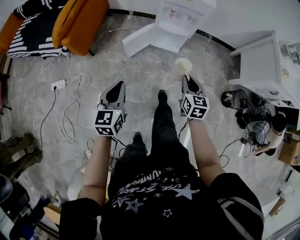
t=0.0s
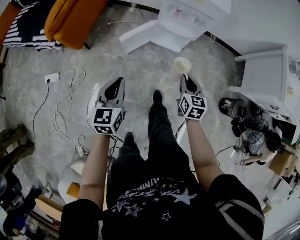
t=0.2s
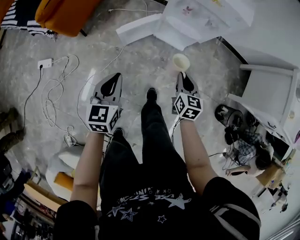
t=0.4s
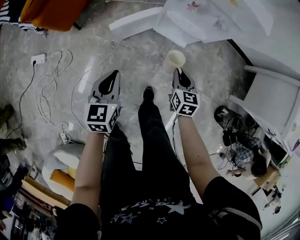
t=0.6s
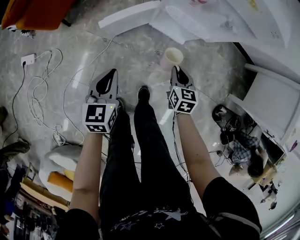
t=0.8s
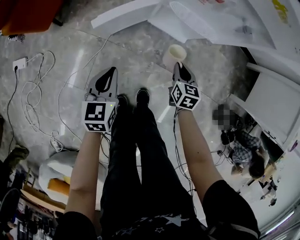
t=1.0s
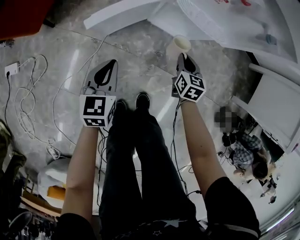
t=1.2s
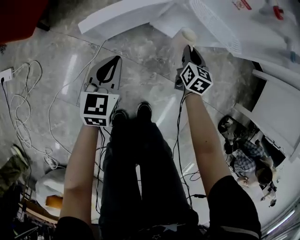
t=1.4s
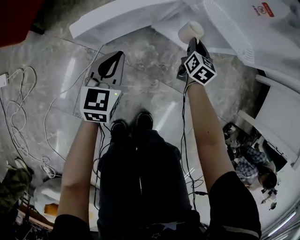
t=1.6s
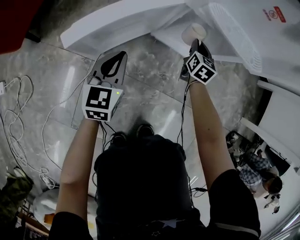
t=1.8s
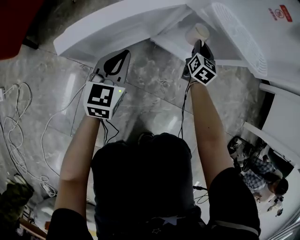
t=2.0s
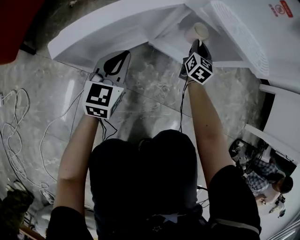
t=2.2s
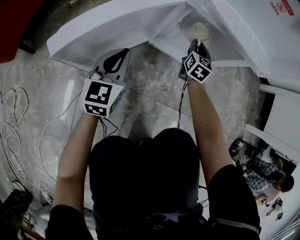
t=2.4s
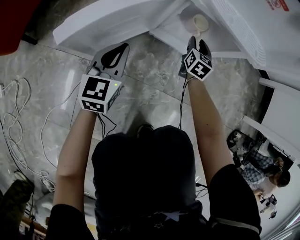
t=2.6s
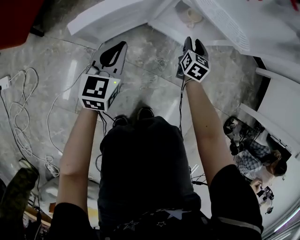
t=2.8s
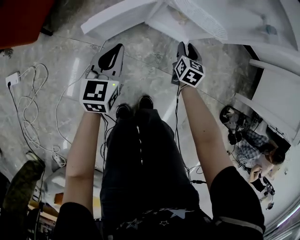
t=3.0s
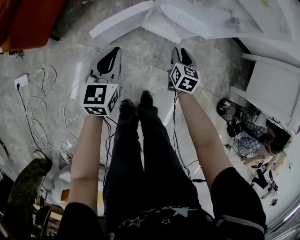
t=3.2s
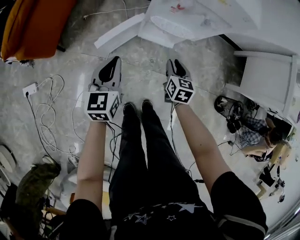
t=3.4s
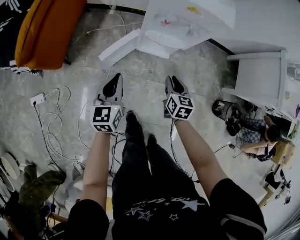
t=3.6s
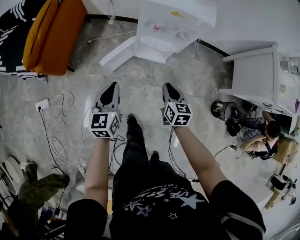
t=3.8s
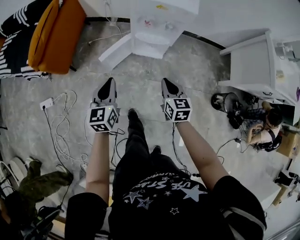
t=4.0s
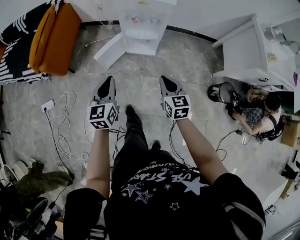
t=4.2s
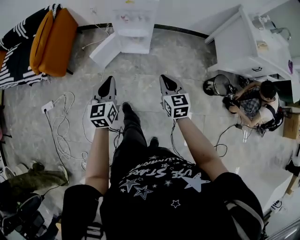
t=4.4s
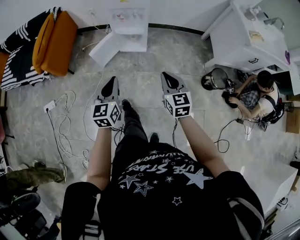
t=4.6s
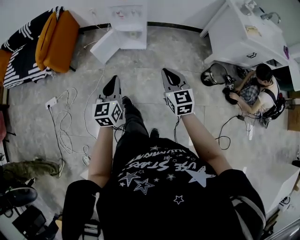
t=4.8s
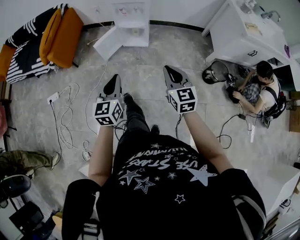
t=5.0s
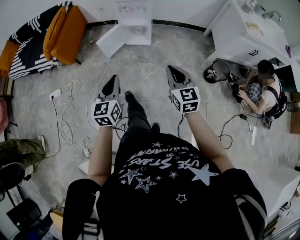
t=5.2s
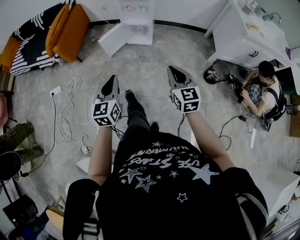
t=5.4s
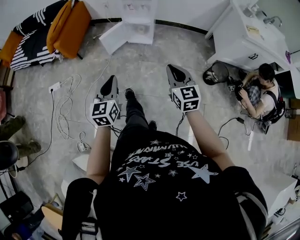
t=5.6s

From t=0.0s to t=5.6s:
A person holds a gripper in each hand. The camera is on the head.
From t=0.0s to t=1.4s: The grippers both shift downward and forward by approximately 60 cm.
From t=1.4s to t=2.8s: The left gripper moves forward, roughly 5 cm, and goes downward and returns, roughly 15 cm each way. Meanwhile the right gripper shifts some 5 cm downward, and goes forward and returns, approximately 15 cm each way.
From t=2.8s to t=4.2s: The two grippers go approximately 60 cm upward and backward. The right gripper closes up.
From t=4.2s to t=5.6s: The left gripper is displaced backward by some 35 cm. Meanwhile the right gripper travels backward and upward by approximately 30 cm.

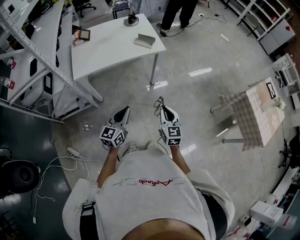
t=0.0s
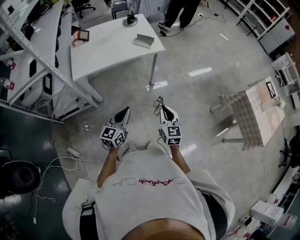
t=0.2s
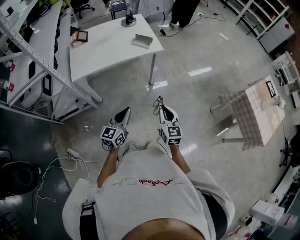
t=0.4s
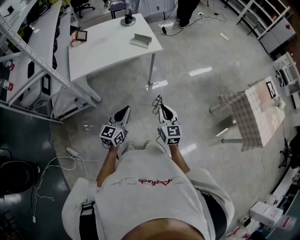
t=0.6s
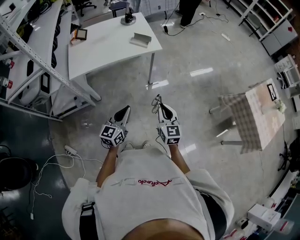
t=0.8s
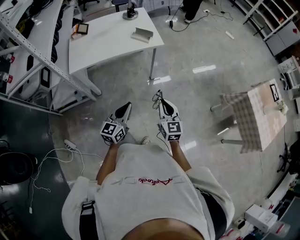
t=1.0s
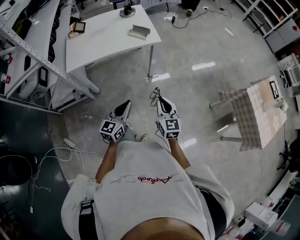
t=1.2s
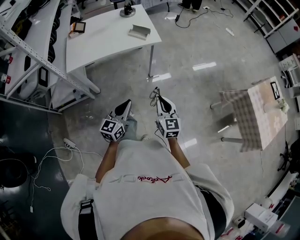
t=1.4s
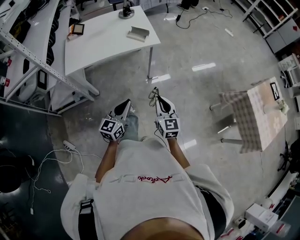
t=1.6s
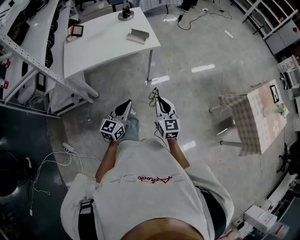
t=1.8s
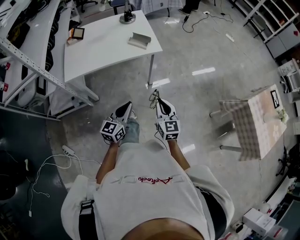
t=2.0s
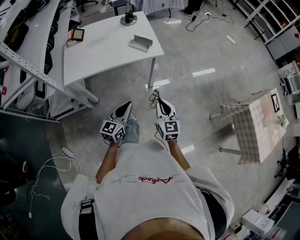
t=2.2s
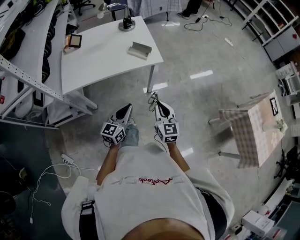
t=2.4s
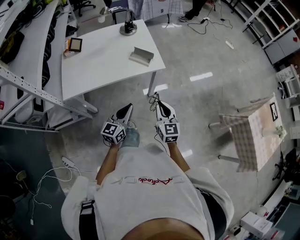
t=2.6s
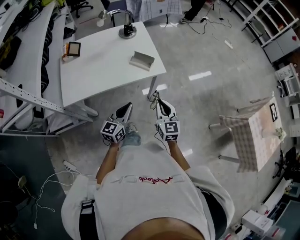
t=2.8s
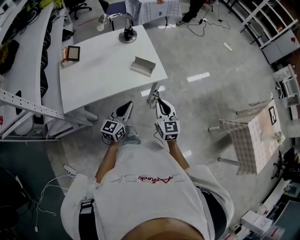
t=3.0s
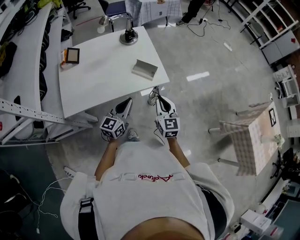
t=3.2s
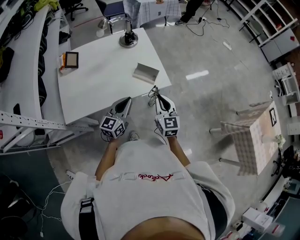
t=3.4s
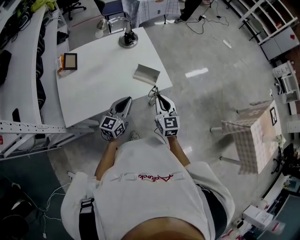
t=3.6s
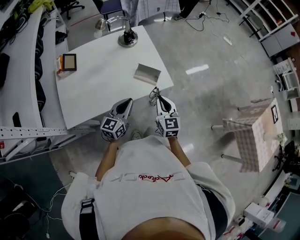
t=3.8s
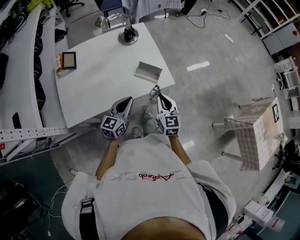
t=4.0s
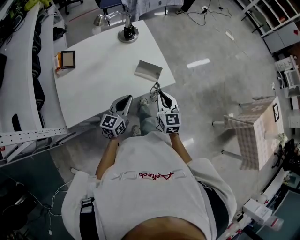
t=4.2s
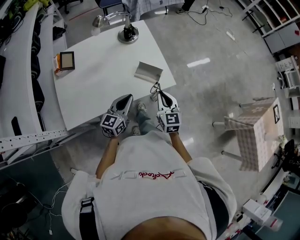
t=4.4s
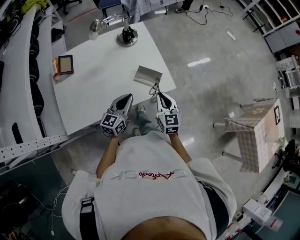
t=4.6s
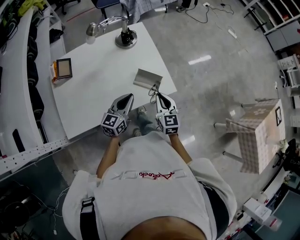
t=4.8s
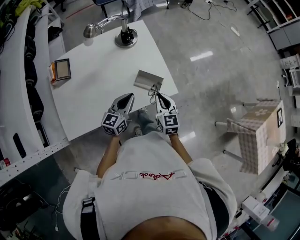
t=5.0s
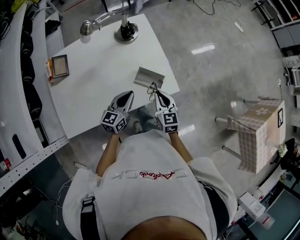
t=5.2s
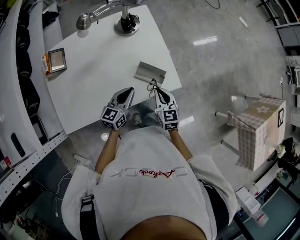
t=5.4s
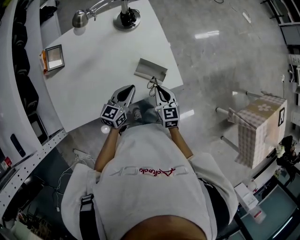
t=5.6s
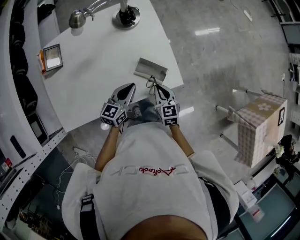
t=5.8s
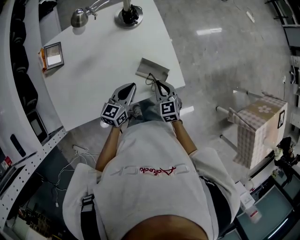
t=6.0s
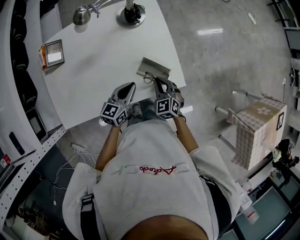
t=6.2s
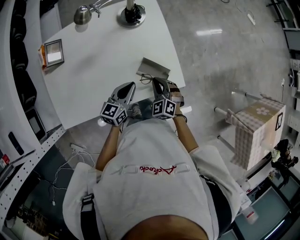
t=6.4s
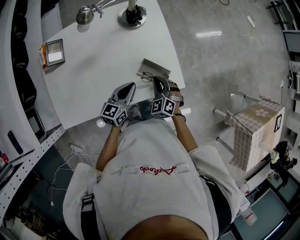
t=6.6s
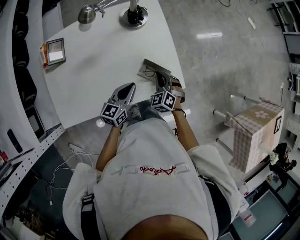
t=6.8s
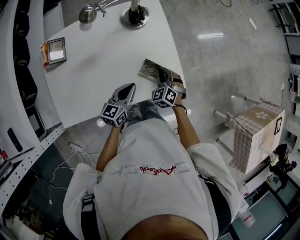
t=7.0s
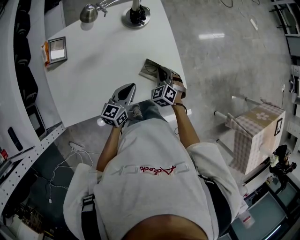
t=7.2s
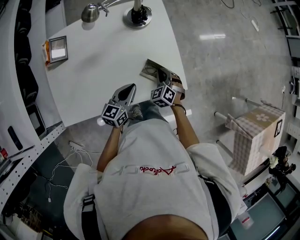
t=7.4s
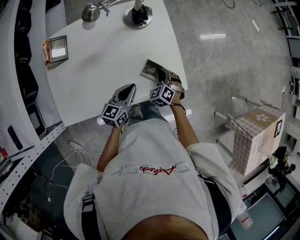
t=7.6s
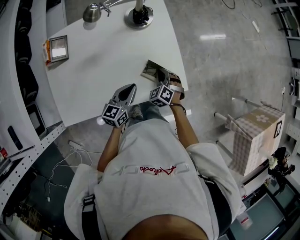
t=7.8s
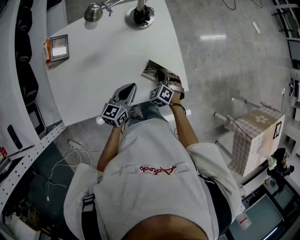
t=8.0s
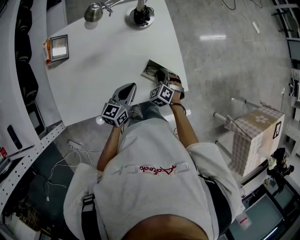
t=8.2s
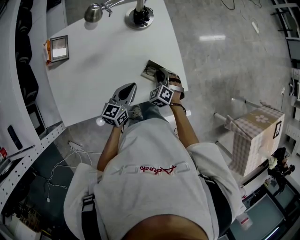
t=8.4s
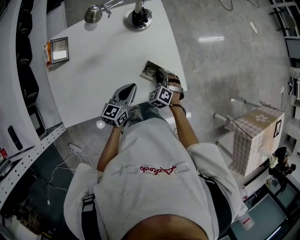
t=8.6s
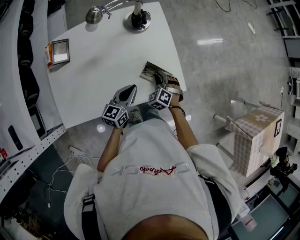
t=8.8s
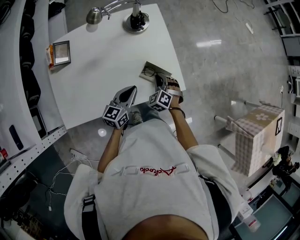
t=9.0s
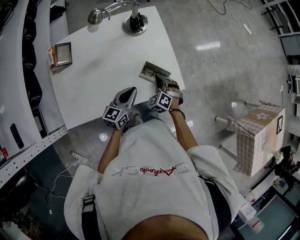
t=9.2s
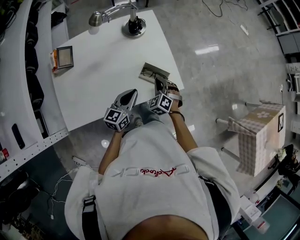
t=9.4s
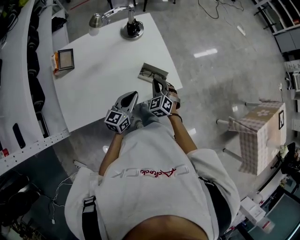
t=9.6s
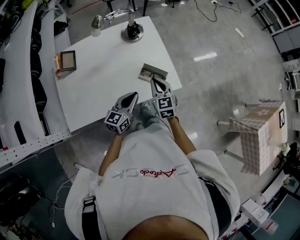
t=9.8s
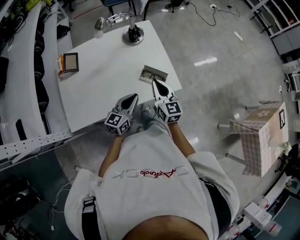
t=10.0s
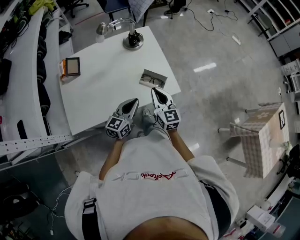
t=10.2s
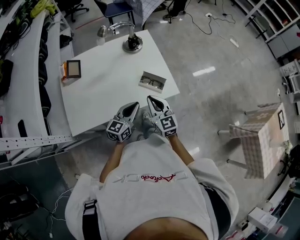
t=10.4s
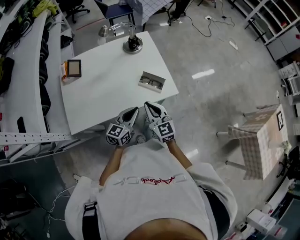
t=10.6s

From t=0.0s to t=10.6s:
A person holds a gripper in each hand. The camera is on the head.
From t=0.0s to t=1.6s: The left gripper moves to the right, roughly 10 cm; the right gripper moves roughly 5 cm.
From t=1.6s to t=3.0s: Both grippers move forward, some 25 cm.
From t=3.0s to t=4.6s: The grippers both shift forward and to the left by approximately 15 cm.
From t=4.6s to t=6.0s: Both grippers travel together downward and forward, about 10 cm. The right gripper swivels about 20 degrees.
From t=6.0s to t=7.6s: The right gripper shifts some 5 cm forward, and rotates approximately 40 degrees.
From t=7.6s to t=9.0s: The grippers make only small movements.
From t=9.0s to t=10.6s: The left gripper moves backward, about 10 cm. Meanwhile the right gripper is displaced upward and backward by roughly 25 cm, and tilts its fingers approximately 40 degrees upward.

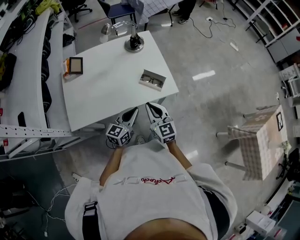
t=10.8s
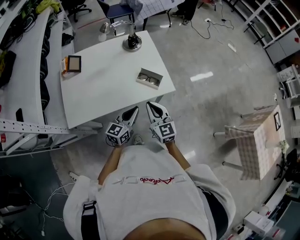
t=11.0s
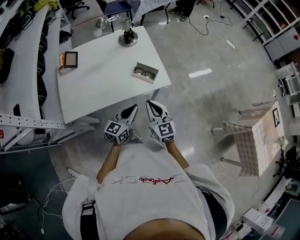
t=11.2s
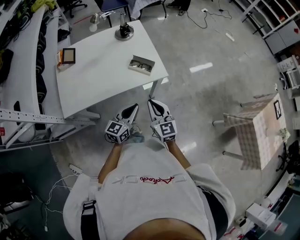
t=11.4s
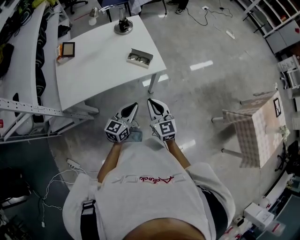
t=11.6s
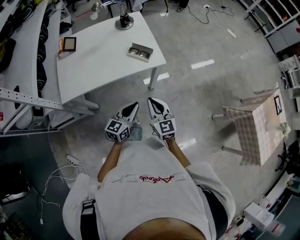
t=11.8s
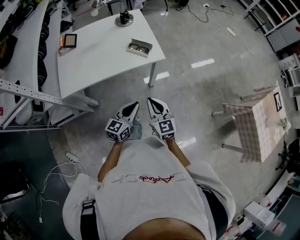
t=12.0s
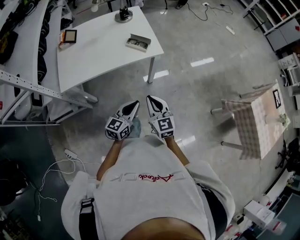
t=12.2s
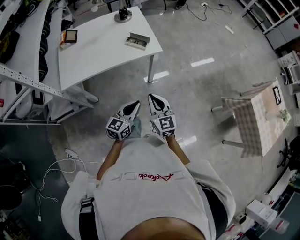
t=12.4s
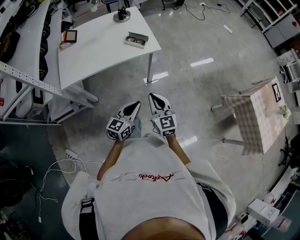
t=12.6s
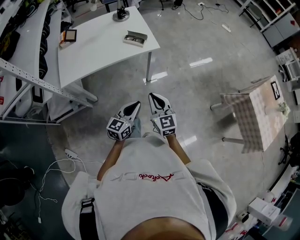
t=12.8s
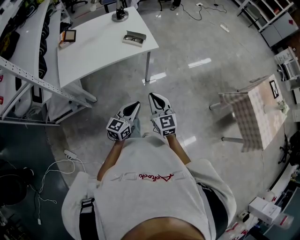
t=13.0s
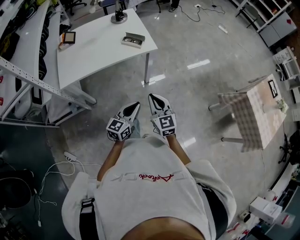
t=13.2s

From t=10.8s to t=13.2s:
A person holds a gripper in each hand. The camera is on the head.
From t=10.8s to t=12.0s: Both grippers travel together backward and to the right, some 20 cm.
From t=12.0s to t=13.2s: Both grippers move backward, about 10 cm.

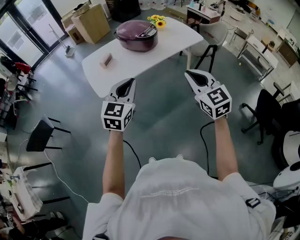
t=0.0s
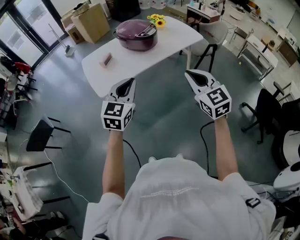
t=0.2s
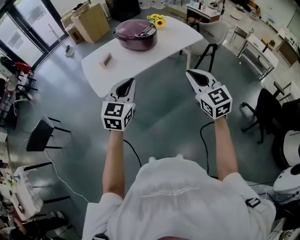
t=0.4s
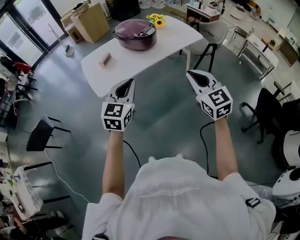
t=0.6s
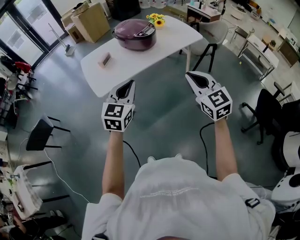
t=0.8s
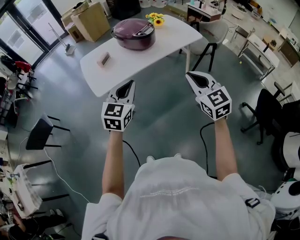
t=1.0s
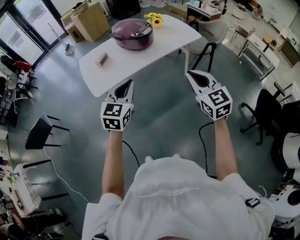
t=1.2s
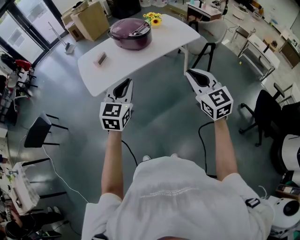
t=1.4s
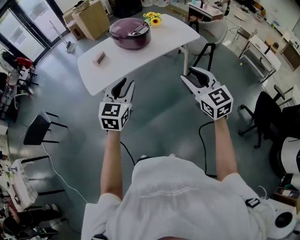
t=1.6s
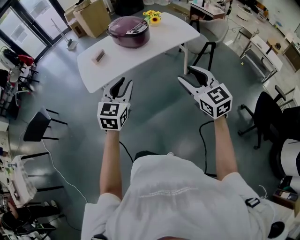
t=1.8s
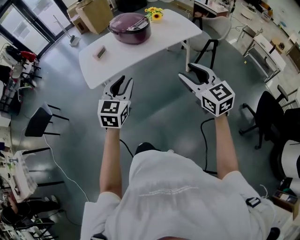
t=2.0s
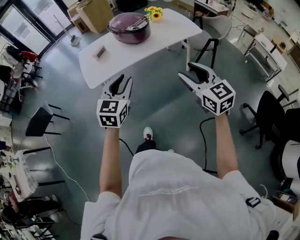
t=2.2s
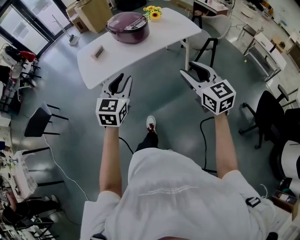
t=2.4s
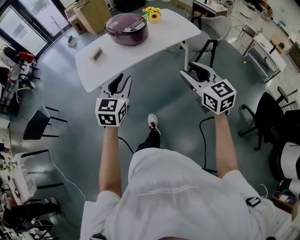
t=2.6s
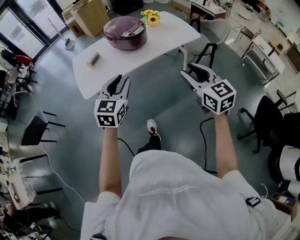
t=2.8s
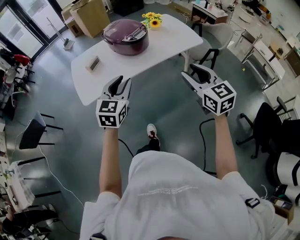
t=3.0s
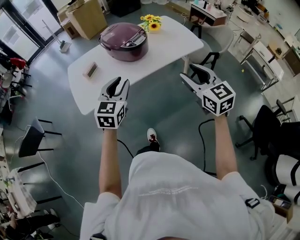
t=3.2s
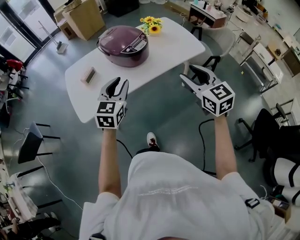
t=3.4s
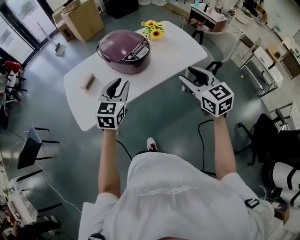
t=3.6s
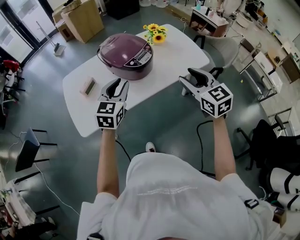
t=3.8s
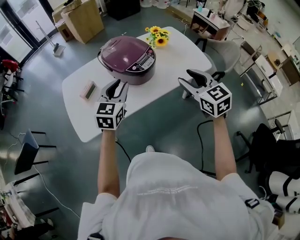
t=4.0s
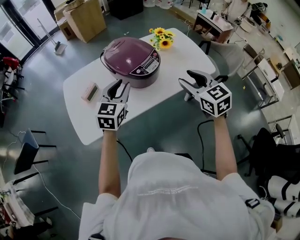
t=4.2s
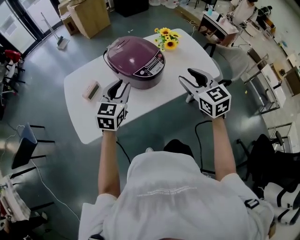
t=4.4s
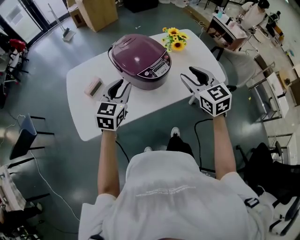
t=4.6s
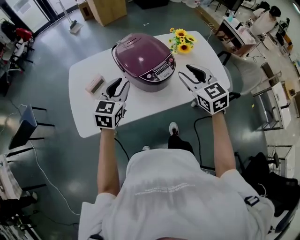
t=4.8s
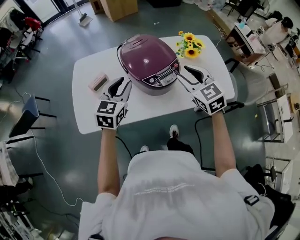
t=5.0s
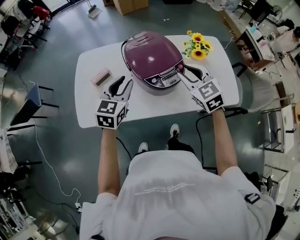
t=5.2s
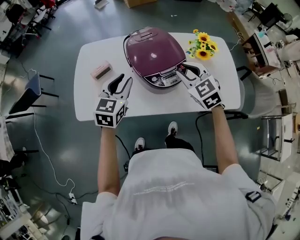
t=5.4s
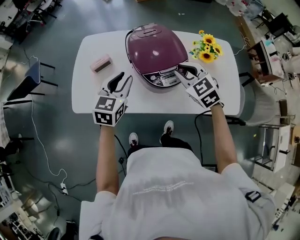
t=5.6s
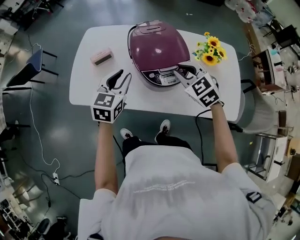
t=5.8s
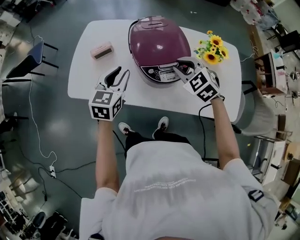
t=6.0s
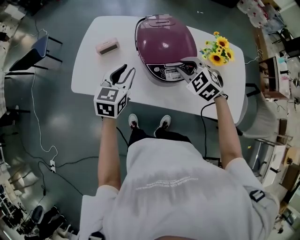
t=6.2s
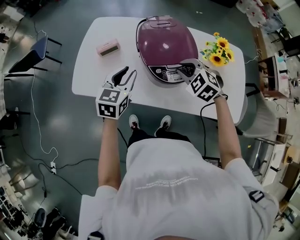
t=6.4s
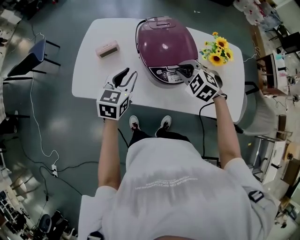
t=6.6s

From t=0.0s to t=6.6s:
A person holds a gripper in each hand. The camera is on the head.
From t=0.0s to t=1.6s: Both grippers travel together to the right, roughly 5 cm. The right gripper opens its fingers. Meanwhile the left gripper opens.
From t=1.6s to t=3.2s: Both grippers travel together forward, about 20 cm.
From t=3.2s to t=5.0s: Both grippers move forward, some 35 cm. The right gripper swivels approximately 30 degrees.
From t=5.0s to t=6.6s: The left gripper heads downward, covering roughly 5 cm, and changes its angle by roughly 20 degrees, while the right gripper shifts about 10 cm downward, changes its angle by about 50 degrees, and closes its fingers.
